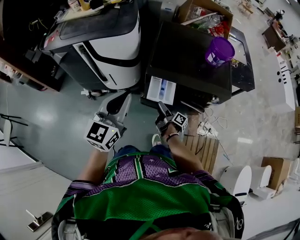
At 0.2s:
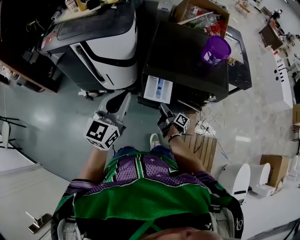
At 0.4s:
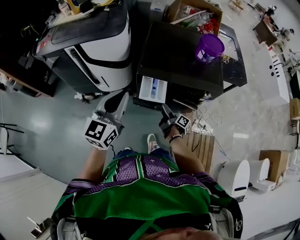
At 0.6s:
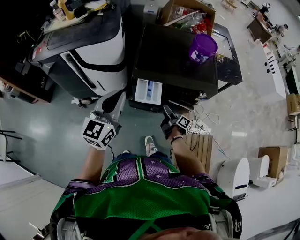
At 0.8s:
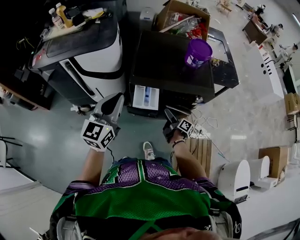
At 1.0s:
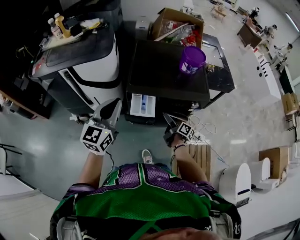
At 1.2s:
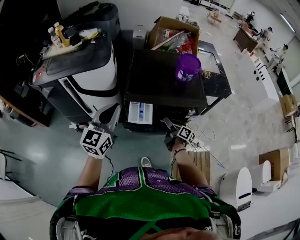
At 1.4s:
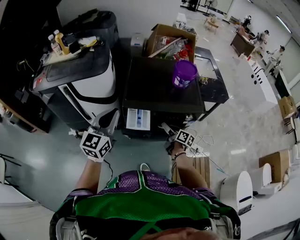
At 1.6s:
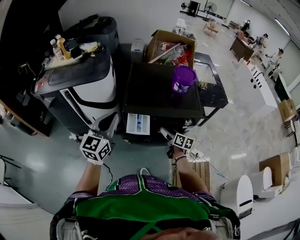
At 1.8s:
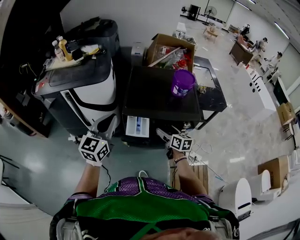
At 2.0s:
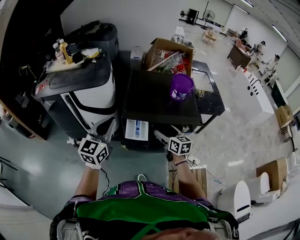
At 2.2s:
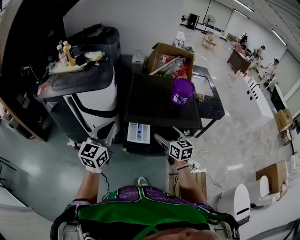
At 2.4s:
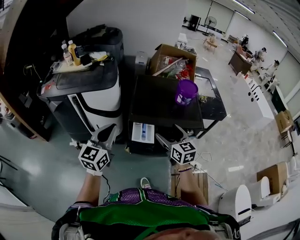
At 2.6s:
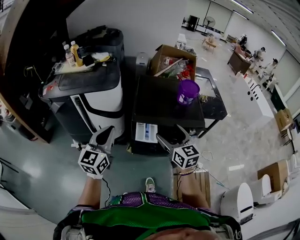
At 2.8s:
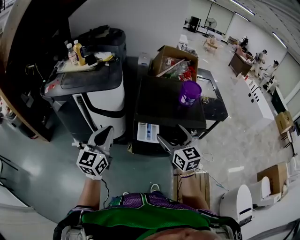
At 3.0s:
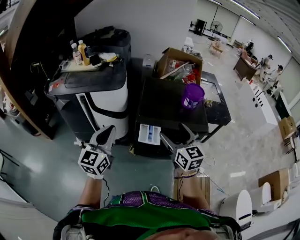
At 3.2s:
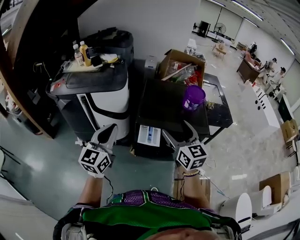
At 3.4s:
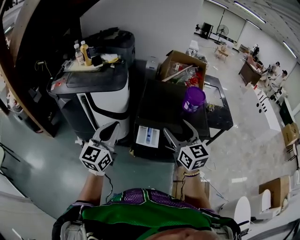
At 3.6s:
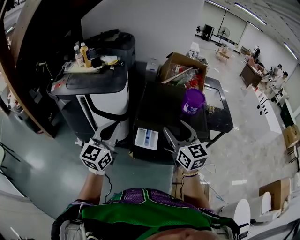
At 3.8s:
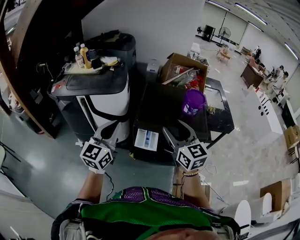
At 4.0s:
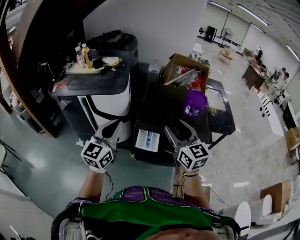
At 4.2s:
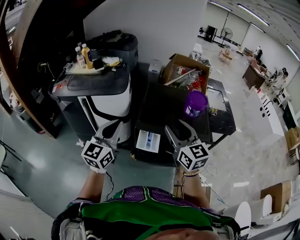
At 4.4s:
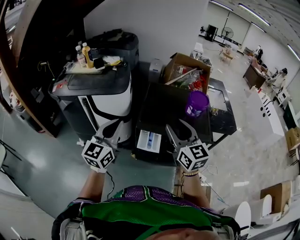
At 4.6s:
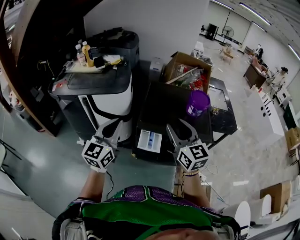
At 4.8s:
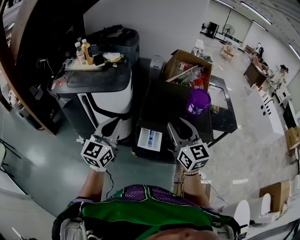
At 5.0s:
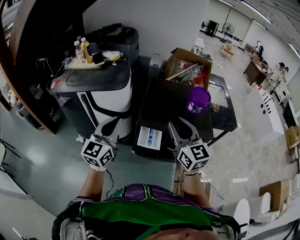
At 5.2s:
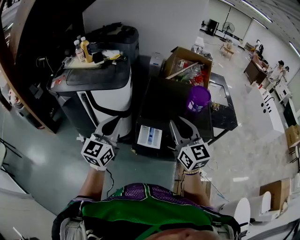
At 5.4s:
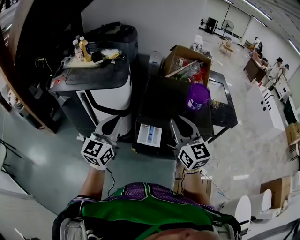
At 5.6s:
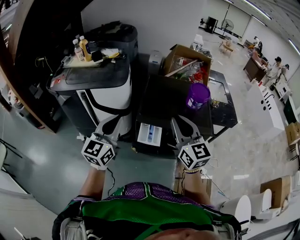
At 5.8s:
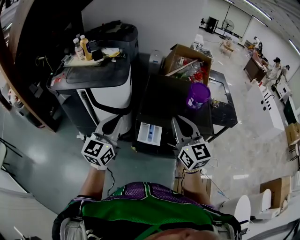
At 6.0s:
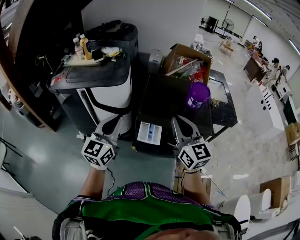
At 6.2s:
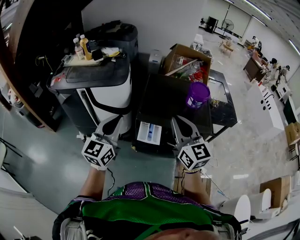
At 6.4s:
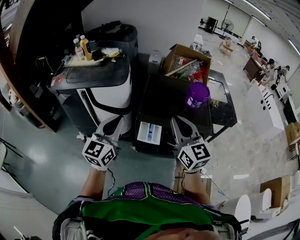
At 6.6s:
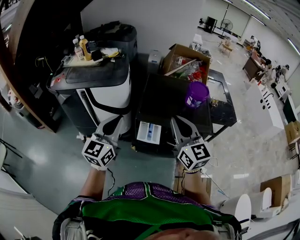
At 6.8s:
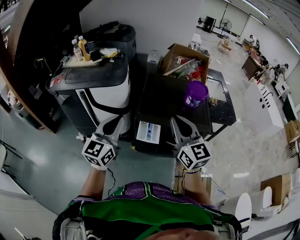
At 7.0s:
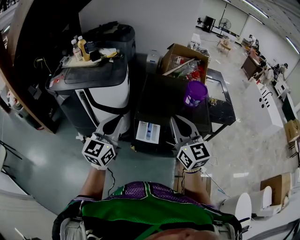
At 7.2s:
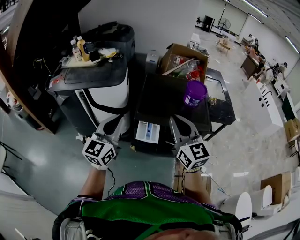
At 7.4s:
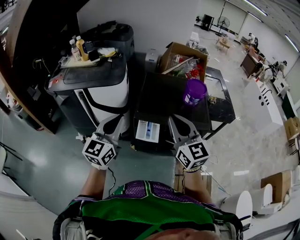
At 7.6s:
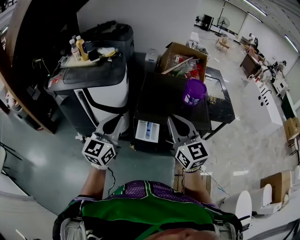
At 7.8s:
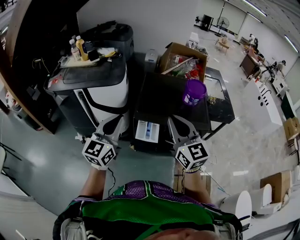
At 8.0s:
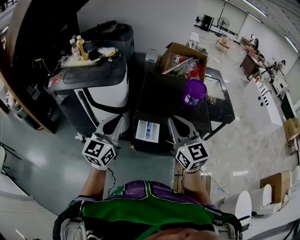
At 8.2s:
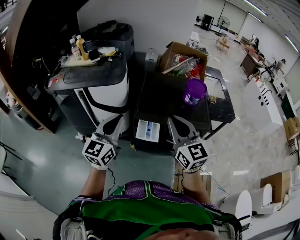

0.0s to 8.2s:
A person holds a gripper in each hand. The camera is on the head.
0.0s to 1.6s: The left gripper moves approximately 5 cm. Meanwhile the right gripper shifts approximately 20 cm to the right and upward, and rotates around the line of its fingers by roughly 50 degrees, counterclockwise from behind.
1.6s to 3.2s: The left gripper goes roughly 10 cm to the left and backward. The right gripper travels upward by approximately 30 cm, and rolls counterclockwise, seen from behind, by approximately 40 degrees.
3.2s to 5.0s: The right gripper closes its fingers, while the left gripper travels forward by approximately 5 cm.
5.0s to 6.6s: The grippers make only small movements.
6.6s to 8.2s: Both grippers stay put.

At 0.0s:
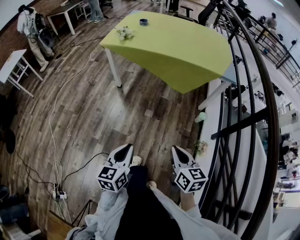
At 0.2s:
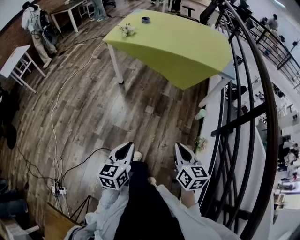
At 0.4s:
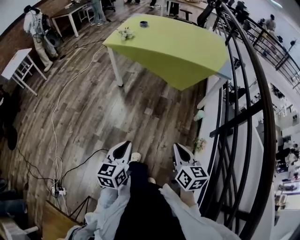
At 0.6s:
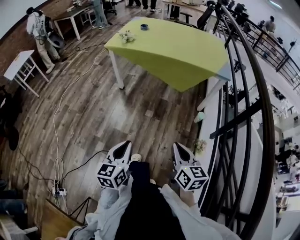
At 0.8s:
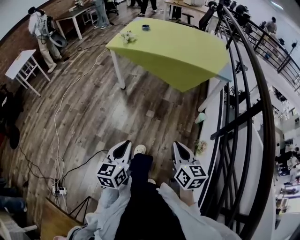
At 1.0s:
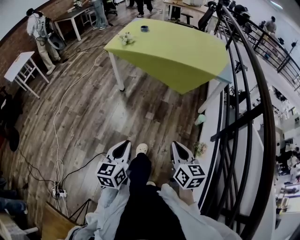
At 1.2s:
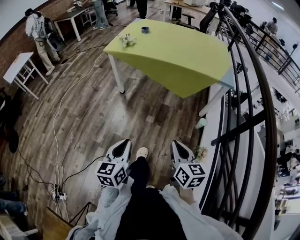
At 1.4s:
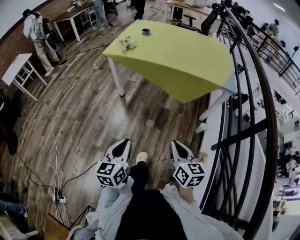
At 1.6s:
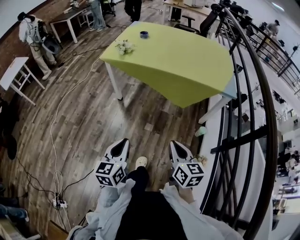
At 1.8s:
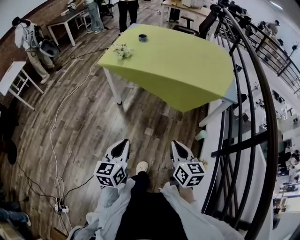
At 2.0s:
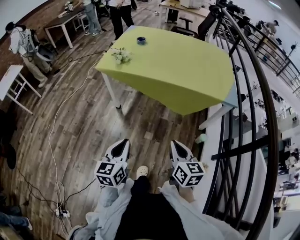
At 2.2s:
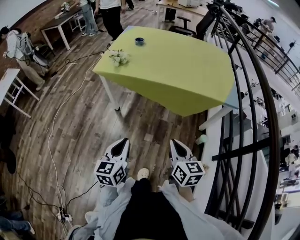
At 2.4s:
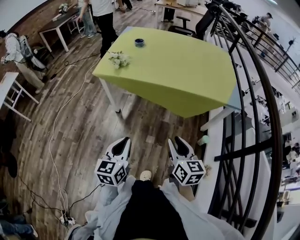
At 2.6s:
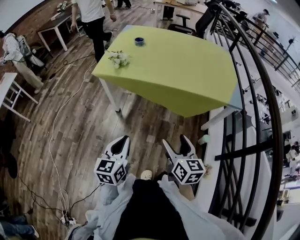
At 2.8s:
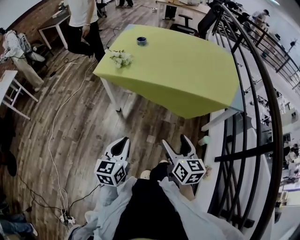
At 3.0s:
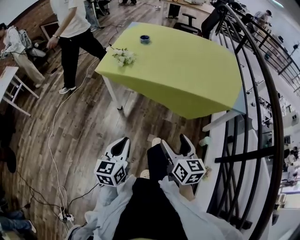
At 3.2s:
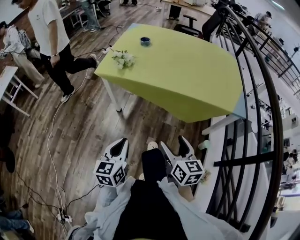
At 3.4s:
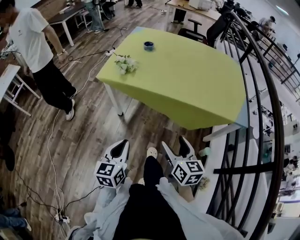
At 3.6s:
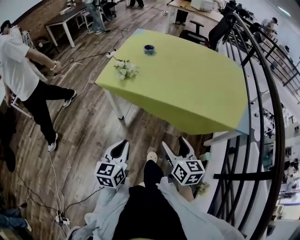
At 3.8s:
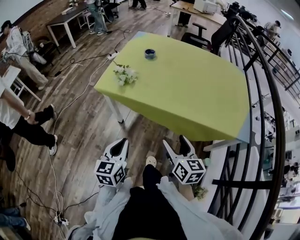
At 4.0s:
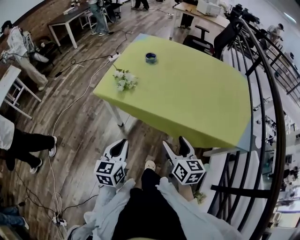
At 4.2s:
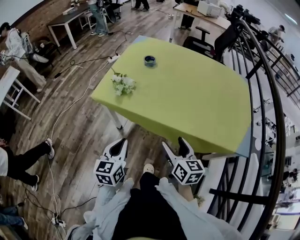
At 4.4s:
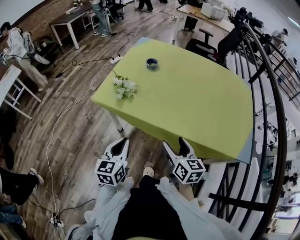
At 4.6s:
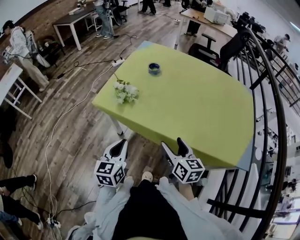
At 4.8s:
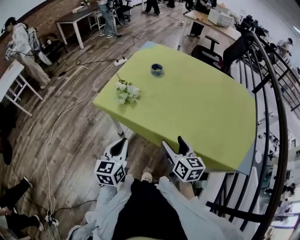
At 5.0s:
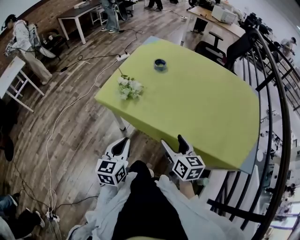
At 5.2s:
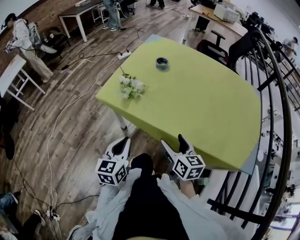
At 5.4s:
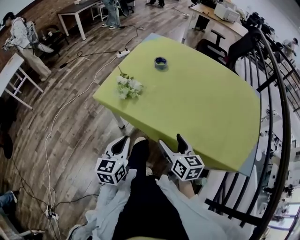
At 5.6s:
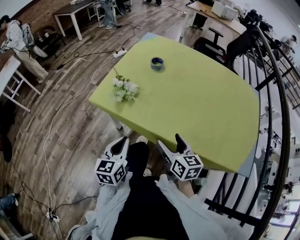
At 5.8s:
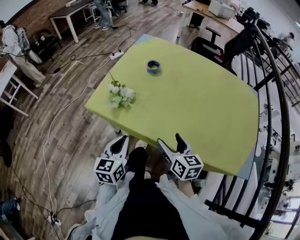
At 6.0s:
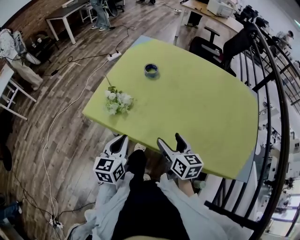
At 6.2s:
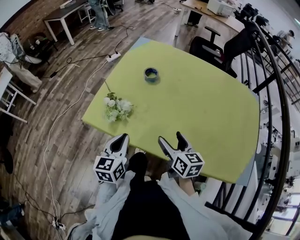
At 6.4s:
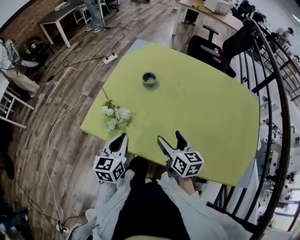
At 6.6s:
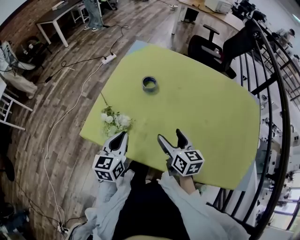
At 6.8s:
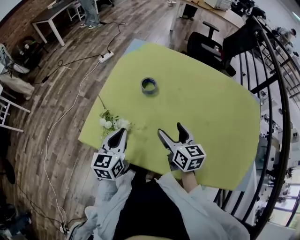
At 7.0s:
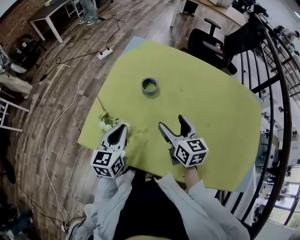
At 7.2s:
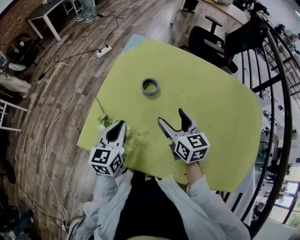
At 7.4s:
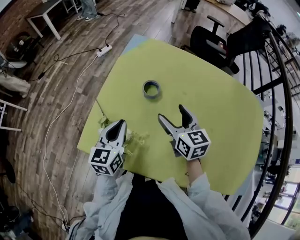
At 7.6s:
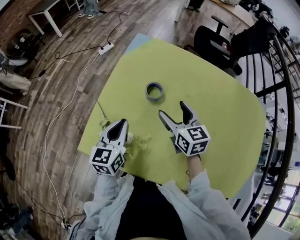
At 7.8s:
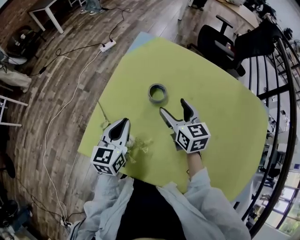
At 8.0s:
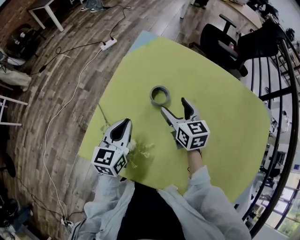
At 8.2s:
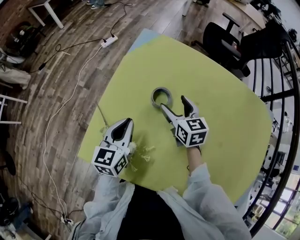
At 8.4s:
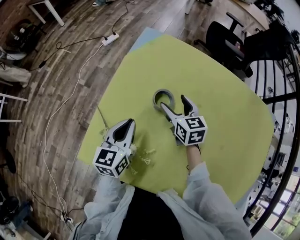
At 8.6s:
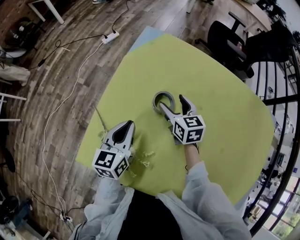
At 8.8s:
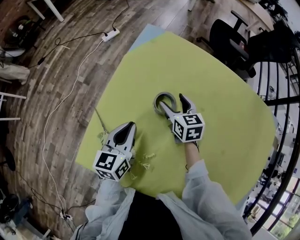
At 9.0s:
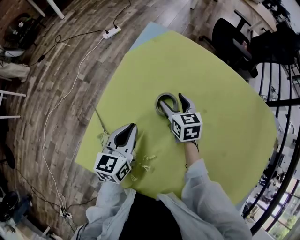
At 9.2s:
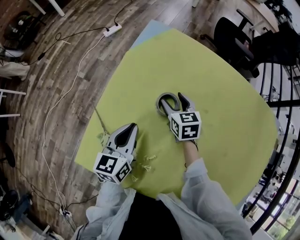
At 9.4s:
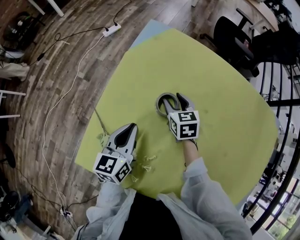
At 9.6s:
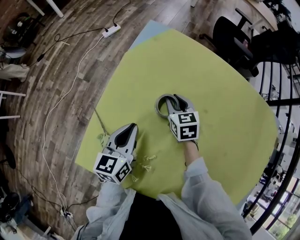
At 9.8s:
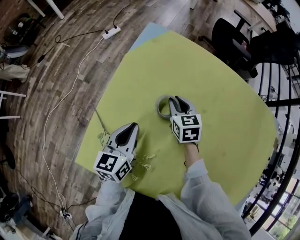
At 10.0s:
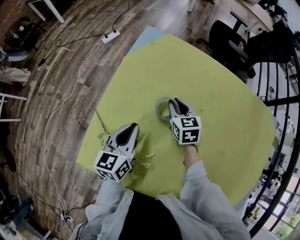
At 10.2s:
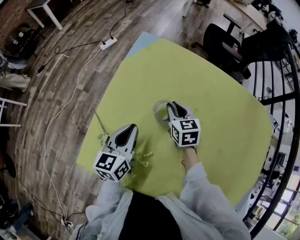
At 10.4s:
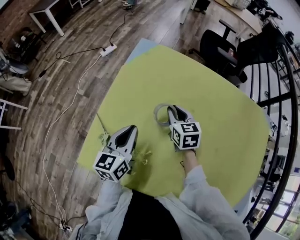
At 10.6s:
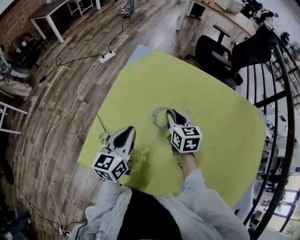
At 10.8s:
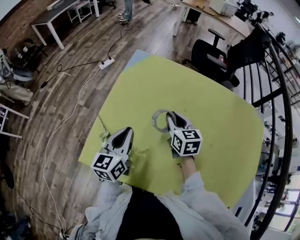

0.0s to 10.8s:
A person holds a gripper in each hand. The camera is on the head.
0.0s to 1.6s: Both grippers travel together forward, roughly 10 cm.
1.6s to 3.0s: Both grippers move forward, roughly 20 cm. The right gripper opens up.
3.0s to 4.6s: The two grippers go approximately 30 cm forward.
4.6s to 6.2s: Both grippers travel together forward, roughly 15 cm.
6.2s to 7.8s: The grippers both shift forward by approximately 30 cm.
7.8s to 9.2s: The right gripper travels downward and forward by about 15 cm. The left gripper travels downward and forward by approximately 10 cm.
9.2s to 10.8s: The left gripper travels upward and backward by roughly 10 cm; the right gripper travels upward, backward and to the right by about 15 cm, and closes.

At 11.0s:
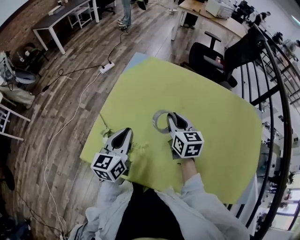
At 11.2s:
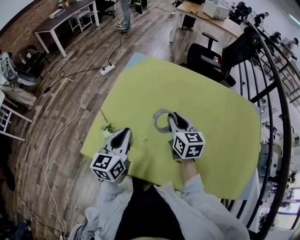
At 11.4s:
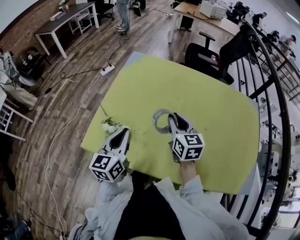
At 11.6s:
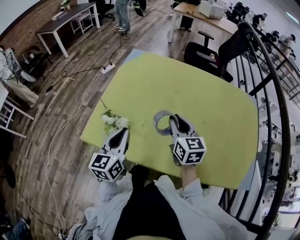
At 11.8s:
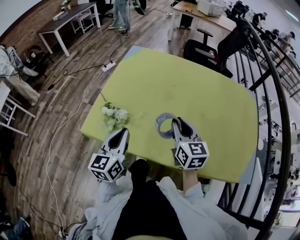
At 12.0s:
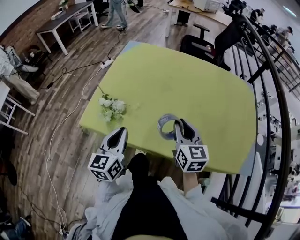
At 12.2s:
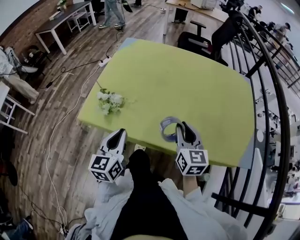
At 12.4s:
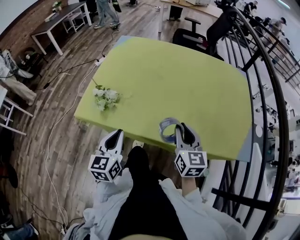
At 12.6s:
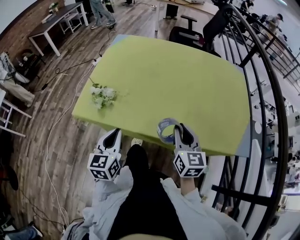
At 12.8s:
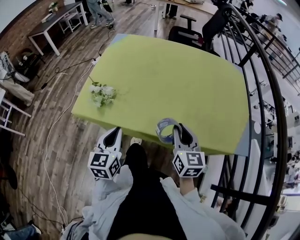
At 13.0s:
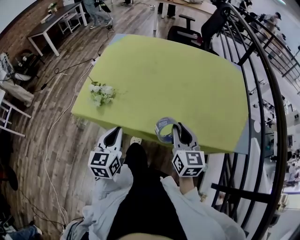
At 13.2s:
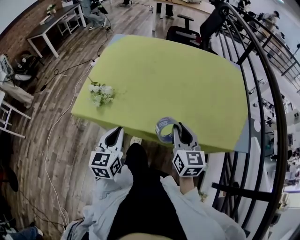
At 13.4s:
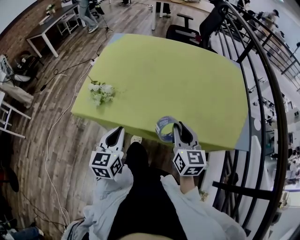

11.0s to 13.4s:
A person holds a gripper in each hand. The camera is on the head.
11.0s to 12.2s: The two grippers go about 25 cm backward.
12.2s to 13.4s: The right gripper is displaced backward by roughly 10 cm. The left gripper moves approximately 5 cm.

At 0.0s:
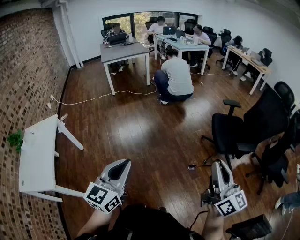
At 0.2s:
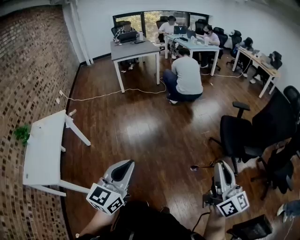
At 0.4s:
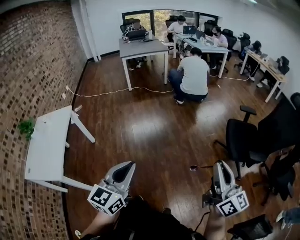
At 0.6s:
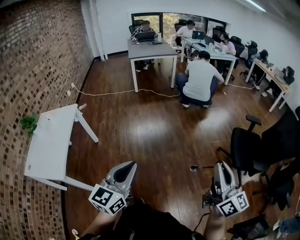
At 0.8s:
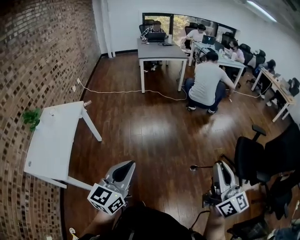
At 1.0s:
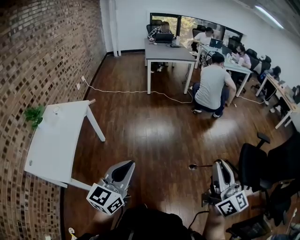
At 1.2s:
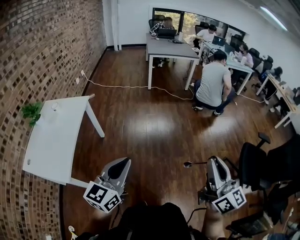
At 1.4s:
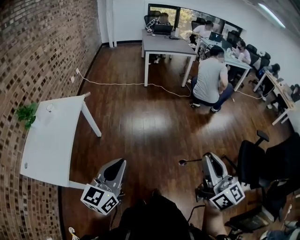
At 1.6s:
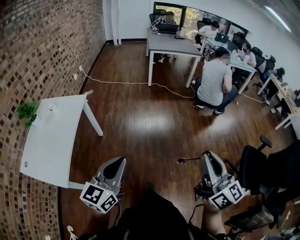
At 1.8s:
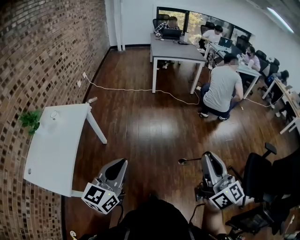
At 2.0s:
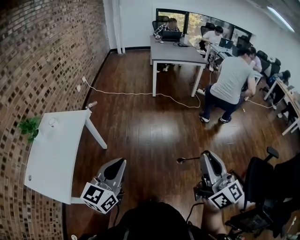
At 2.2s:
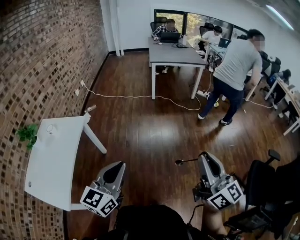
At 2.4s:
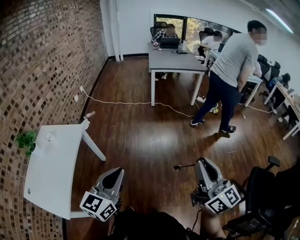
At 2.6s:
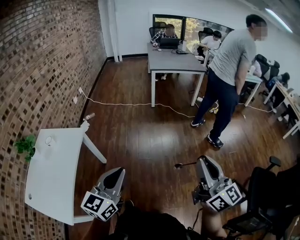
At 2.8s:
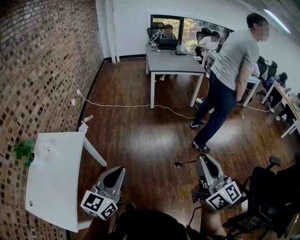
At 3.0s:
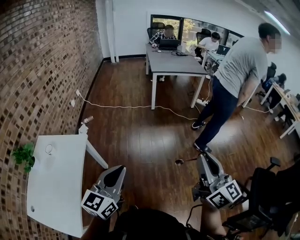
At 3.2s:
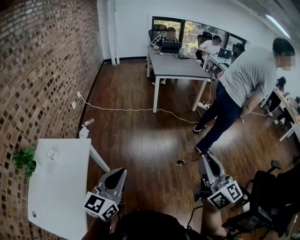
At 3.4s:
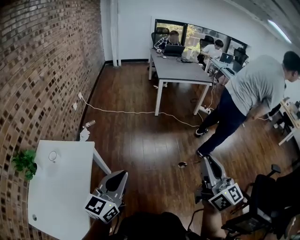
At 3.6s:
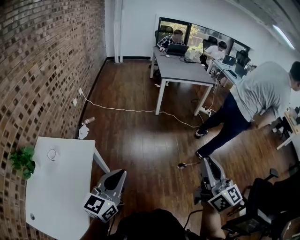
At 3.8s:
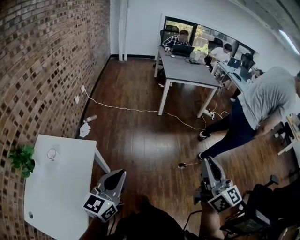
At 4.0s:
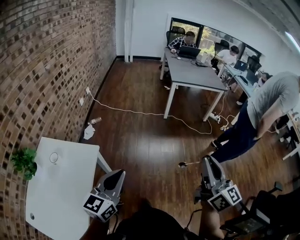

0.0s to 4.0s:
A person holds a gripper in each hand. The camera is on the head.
0.0s to 1.4s: The right gripper goes about 35 cm to the left and forward, and turns by roughly 20 degrees; the left gripper goes some 25 cm to the left.
1.4s to 2.6s: Both grippers move forward, approximately 25 cm.
2.6s to 4.0s: The grippers both shift to the left and forward by about 30 cm.
